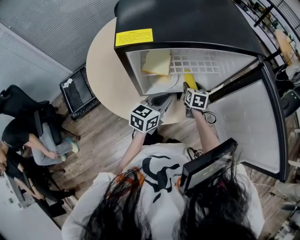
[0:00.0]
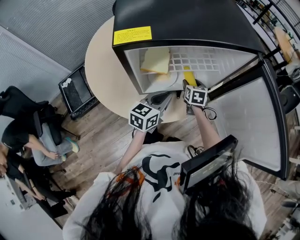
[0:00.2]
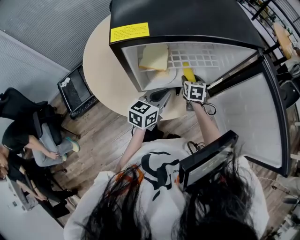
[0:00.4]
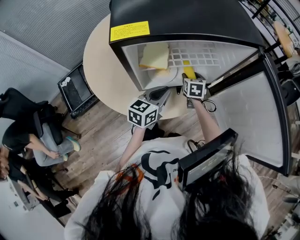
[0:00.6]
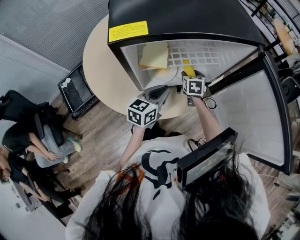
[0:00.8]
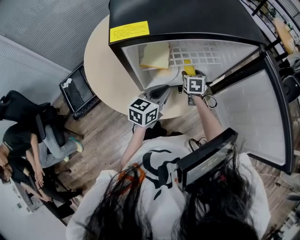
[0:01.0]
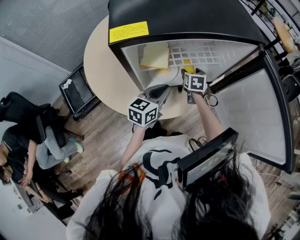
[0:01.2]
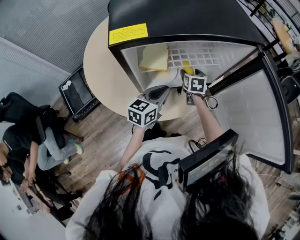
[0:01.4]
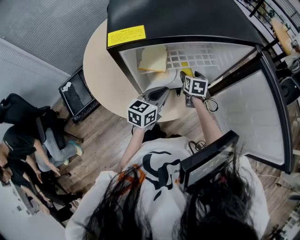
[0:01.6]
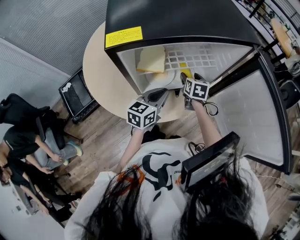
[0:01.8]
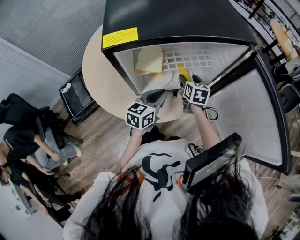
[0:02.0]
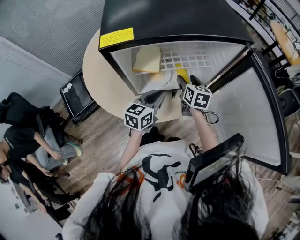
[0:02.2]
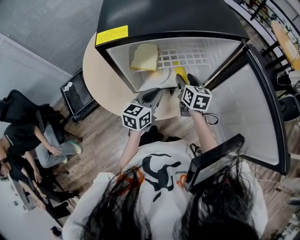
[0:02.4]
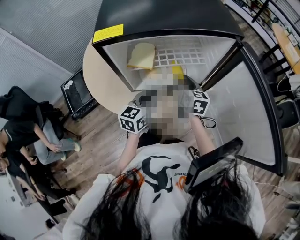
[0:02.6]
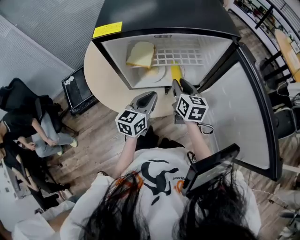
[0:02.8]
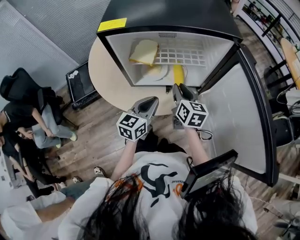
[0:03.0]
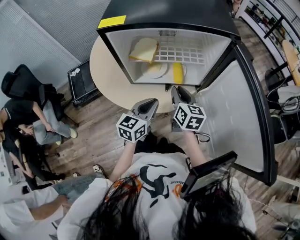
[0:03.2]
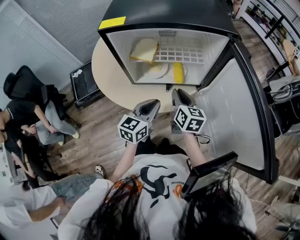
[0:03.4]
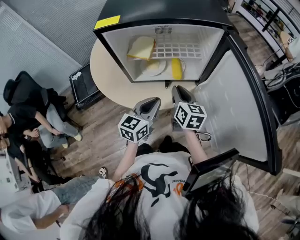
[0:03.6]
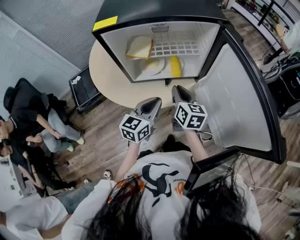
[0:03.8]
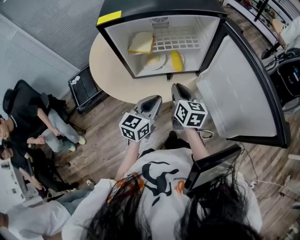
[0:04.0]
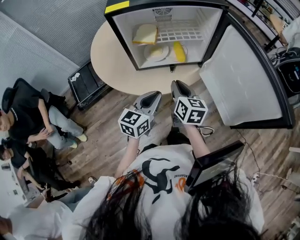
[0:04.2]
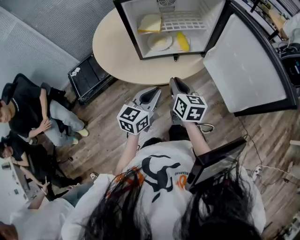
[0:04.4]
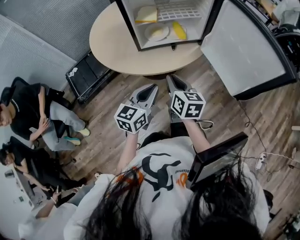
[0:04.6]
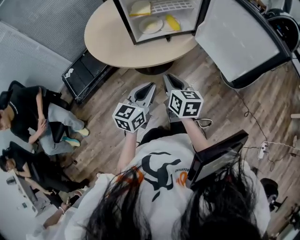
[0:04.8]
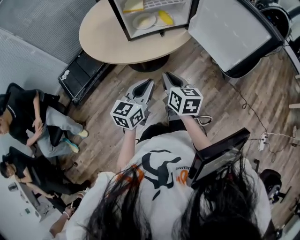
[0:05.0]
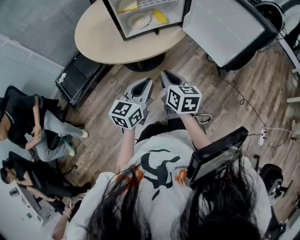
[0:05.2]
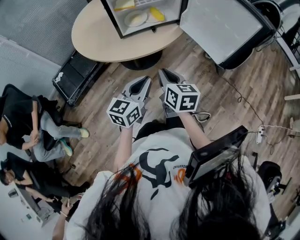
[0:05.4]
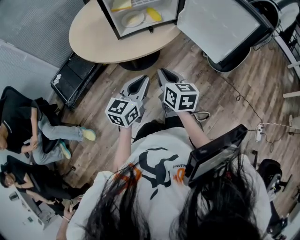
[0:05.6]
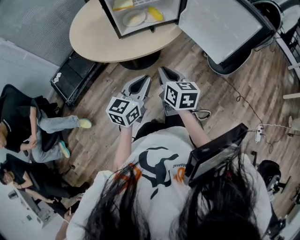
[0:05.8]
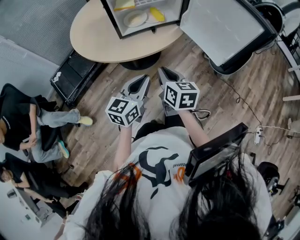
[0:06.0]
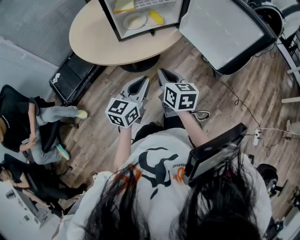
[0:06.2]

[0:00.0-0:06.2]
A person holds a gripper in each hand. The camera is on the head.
0:00.0 to 0:01.6: There are only small adjustments of the grippers.
0:01.6 to 0:03.2: The left gripper shifts about 10 cm backward and to the right; the right gripper goes about 15 cm backward and upward, changes its angle by approximately 30 degrees, and closes.
0:03.2 to 0:04.6: Both grippers travel together backward, roughly 20 cm.
0:04.6 to 0:06.2: The right gripper is displaced backward by about 5 cm. Meanwhile the left gripper changes place by roughly 5 cm.

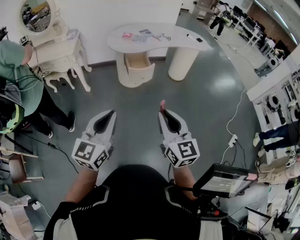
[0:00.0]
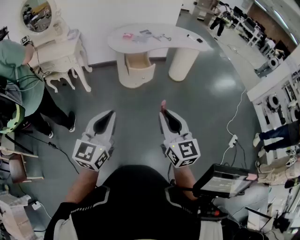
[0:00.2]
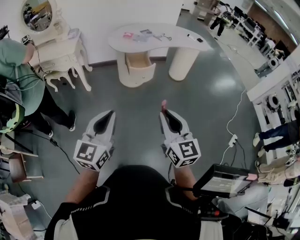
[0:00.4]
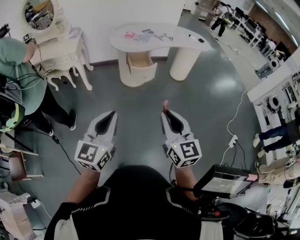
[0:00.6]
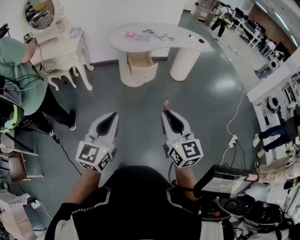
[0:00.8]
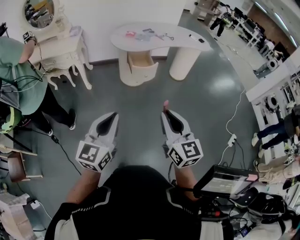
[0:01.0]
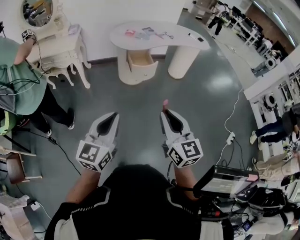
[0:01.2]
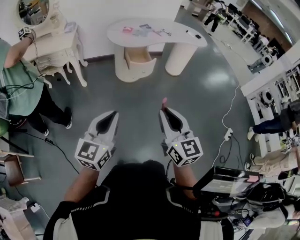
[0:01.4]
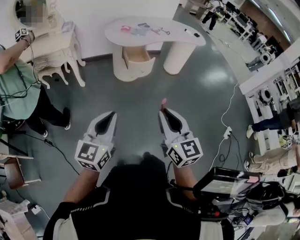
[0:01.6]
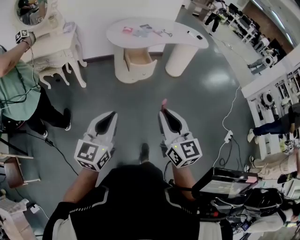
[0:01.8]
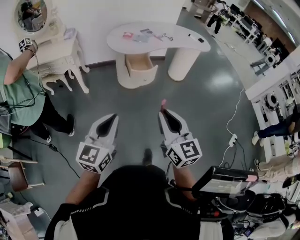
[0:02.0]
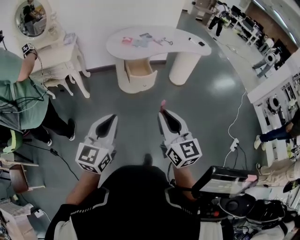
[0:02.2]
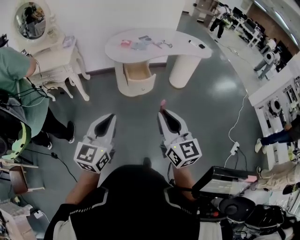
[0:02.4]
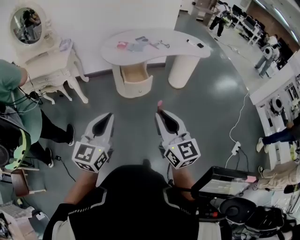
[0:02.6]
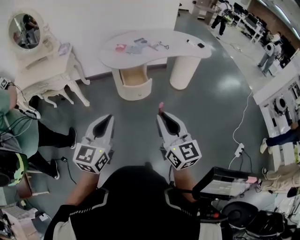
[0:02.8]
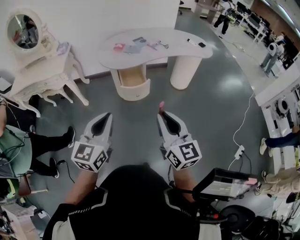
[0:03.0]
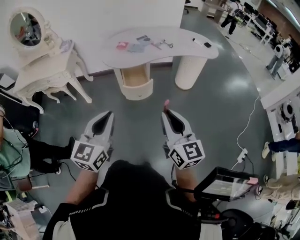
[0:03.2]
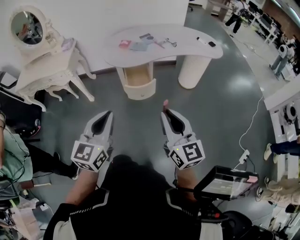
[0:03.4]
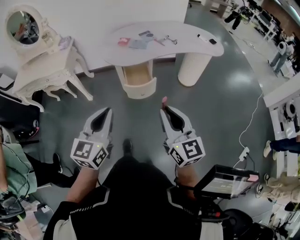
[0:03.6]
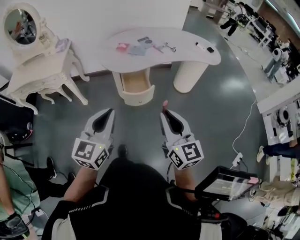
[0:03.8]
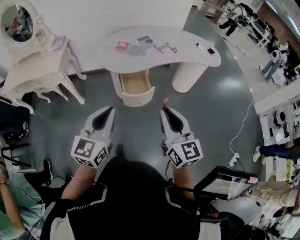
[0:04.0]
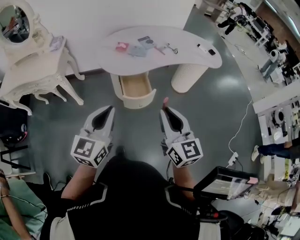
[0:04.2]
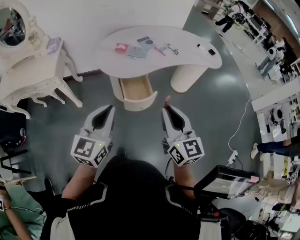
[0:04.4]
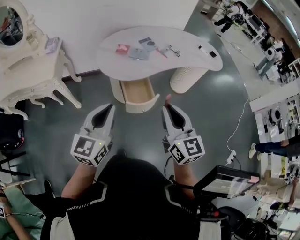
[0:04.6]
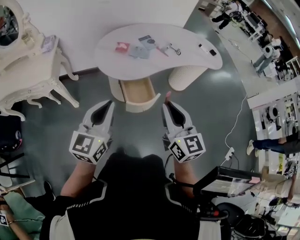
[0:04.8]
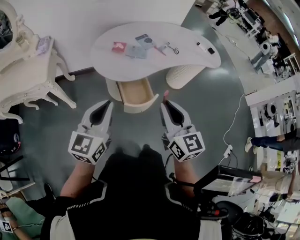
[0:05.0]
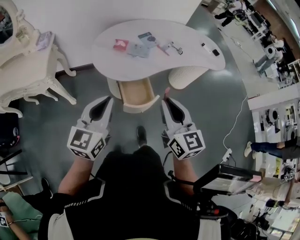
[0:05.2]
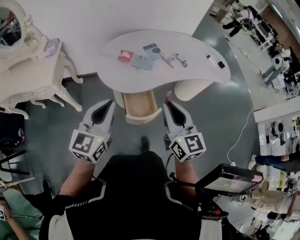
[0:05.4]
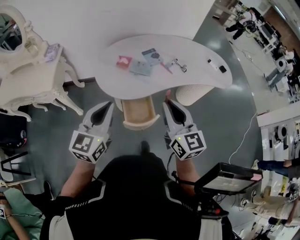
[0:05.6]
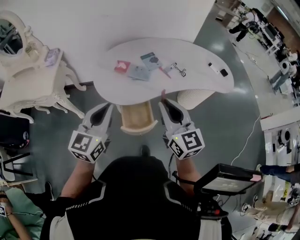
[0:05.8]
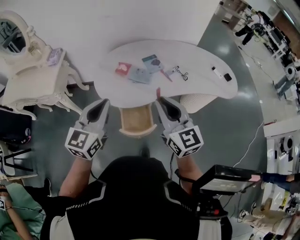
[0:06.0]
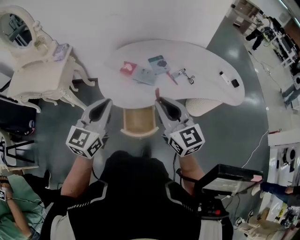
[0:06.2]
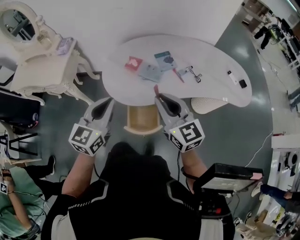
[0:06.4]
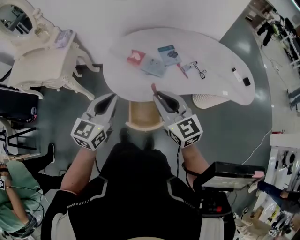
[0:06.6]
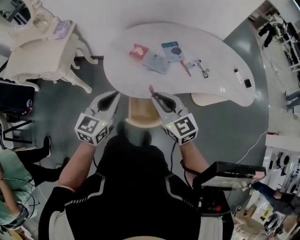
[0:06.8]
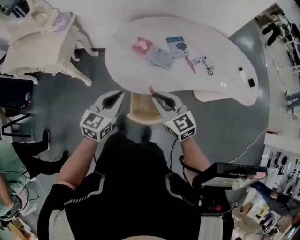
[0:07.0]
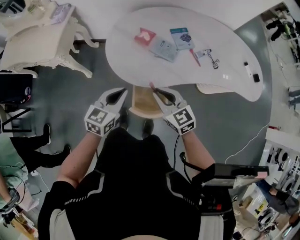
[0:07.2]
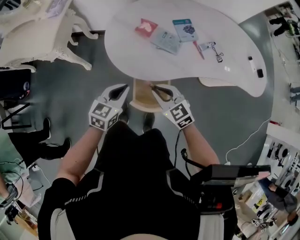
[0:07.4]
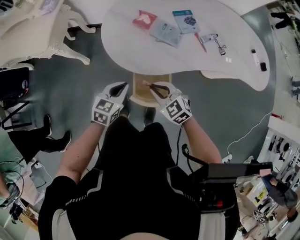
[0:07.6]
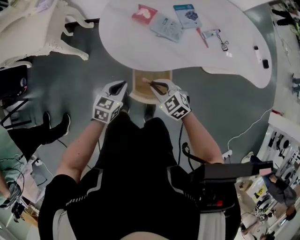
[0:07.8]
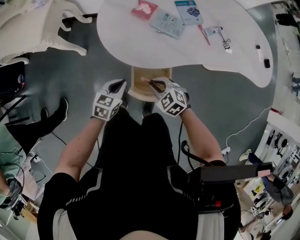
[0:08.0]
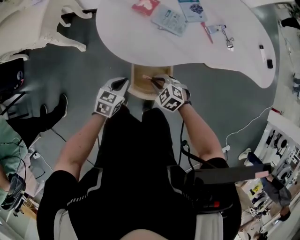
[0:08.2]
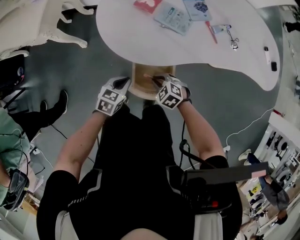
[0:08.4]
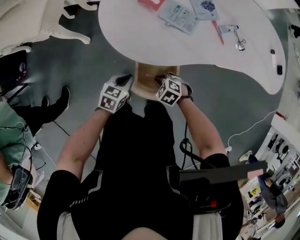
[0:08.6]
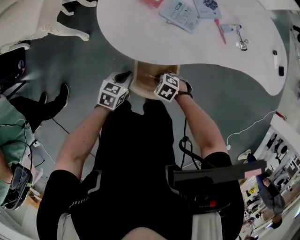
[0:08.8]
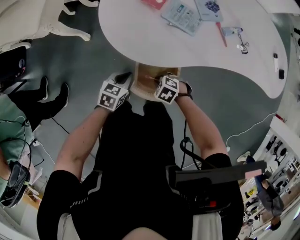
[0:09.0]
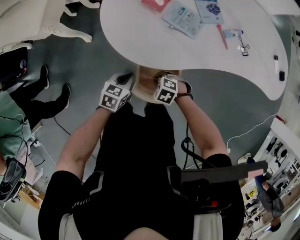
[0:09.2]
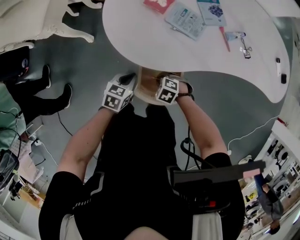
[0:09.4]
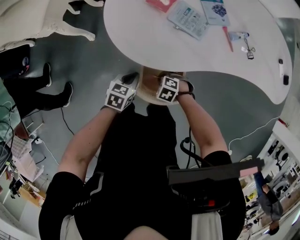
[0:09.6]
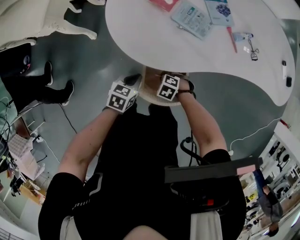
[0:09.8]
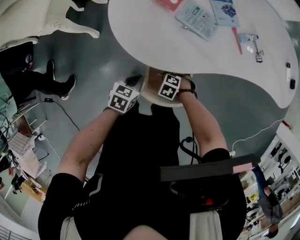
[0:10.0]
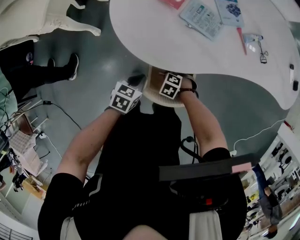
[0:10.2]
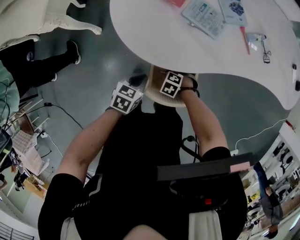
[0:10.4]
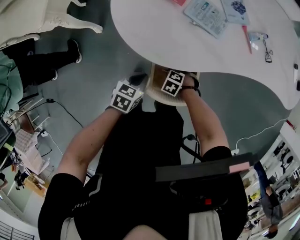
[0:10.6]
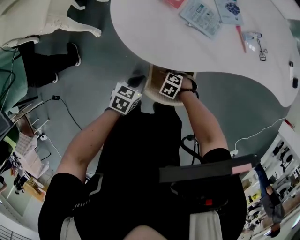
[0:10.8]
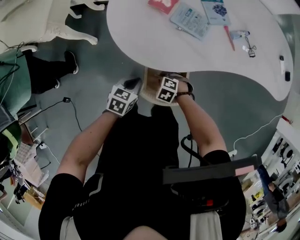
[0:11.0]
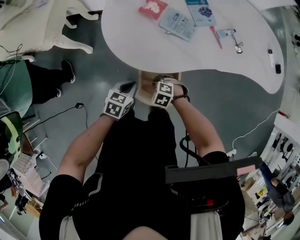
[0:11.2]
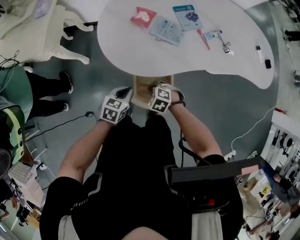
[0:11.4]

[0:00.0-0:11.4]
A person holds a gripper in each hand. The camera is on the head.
0:00.0 to 0:01.4: Both grippers travel together to the left, roughly 5 cm.
0:01.4 to 0:02.8: Both grippers travel together forward and to the right, approximately 20 cm.
0:02.8 to 0:04.2: The two grippers go some 20 cm forward.
0:04.2 to 0:05.6: The grippers both shift forward by about 20 cm.
0:05.6 to 0:07.2: Both grippers move downward and forward, approximately 20 cm. The right gripper swivels roughly 40 degrees; the left gripper swivels about 20 degrees.
0:07.2 to 0:08.6: Both grippers move downward, about 25 cm. The right gripper angles its fingers downward, by some 40 degrees; the left gripper turns by some 30 degrees.
0:08.6 to 0:10.0: The right gripper travels downward by roughly 10 cm.
0:10.0 to 0:11.4: The right gripper is displaced upward by approximately 10 cm, while the left gripper shifts roughly 5 cm upward.

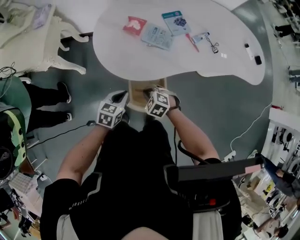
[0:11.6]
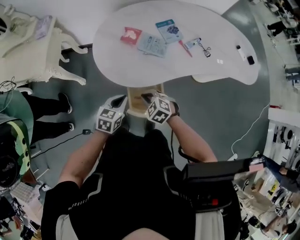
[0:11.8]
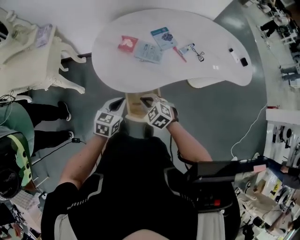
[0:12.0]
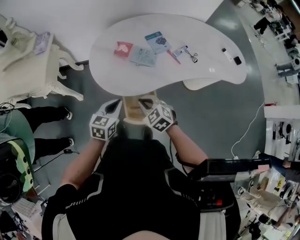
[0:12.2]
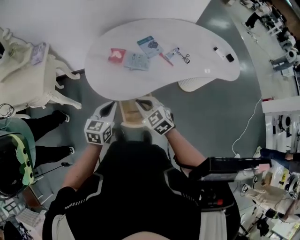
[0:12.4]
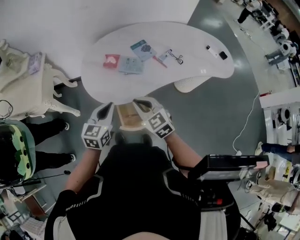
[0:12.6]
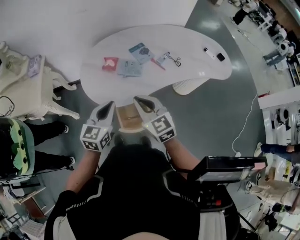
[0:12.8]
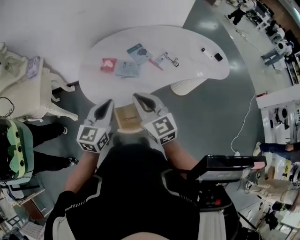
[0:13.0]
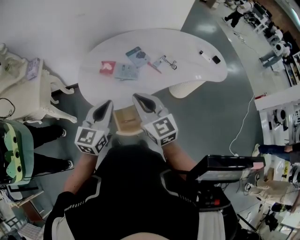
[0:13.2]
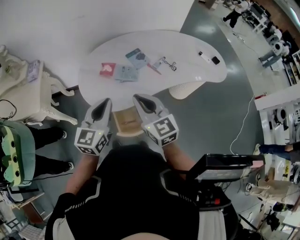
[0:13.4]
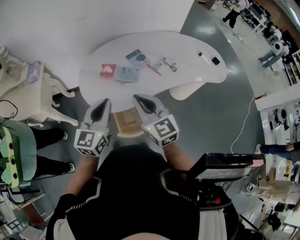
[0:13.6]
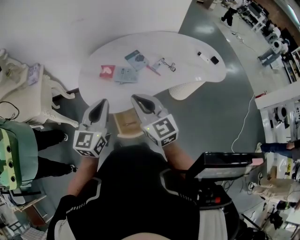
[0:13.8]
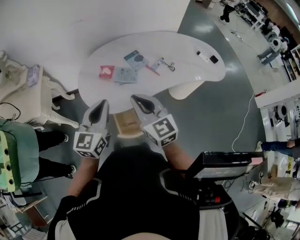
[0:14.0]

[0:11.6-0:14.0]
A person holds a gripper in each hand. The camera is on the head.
0:11.6 to 0:12.8: The grippers both shift upward by approximately 25 cm. The left gripper changes its angle by roughly 30 degrees. Meanwhile the right gripper tips its fingers upward by some 40 degrees.
0:12.8 to 0:14.0: Both grippers travel together upward, about 10 cm.

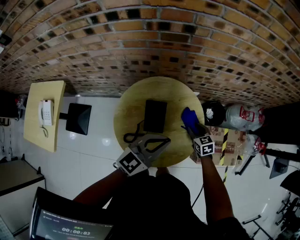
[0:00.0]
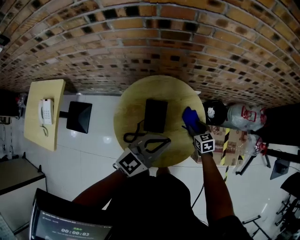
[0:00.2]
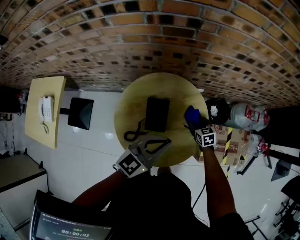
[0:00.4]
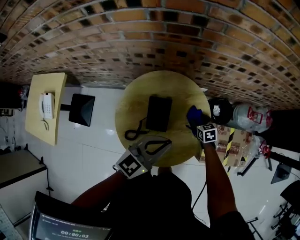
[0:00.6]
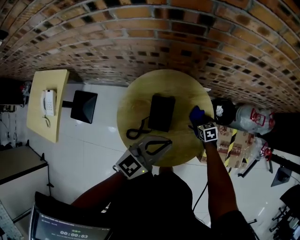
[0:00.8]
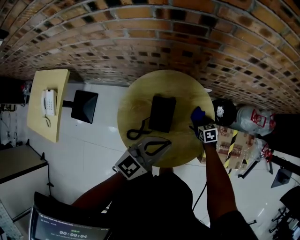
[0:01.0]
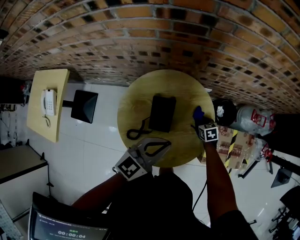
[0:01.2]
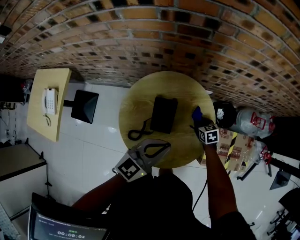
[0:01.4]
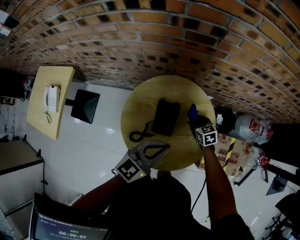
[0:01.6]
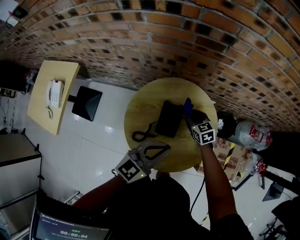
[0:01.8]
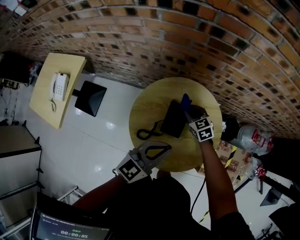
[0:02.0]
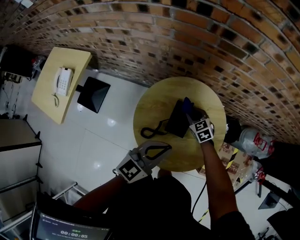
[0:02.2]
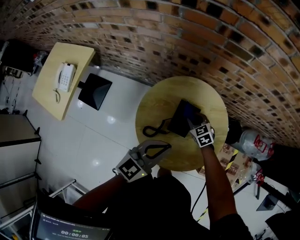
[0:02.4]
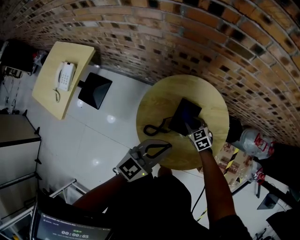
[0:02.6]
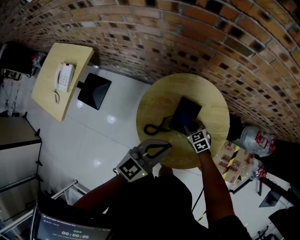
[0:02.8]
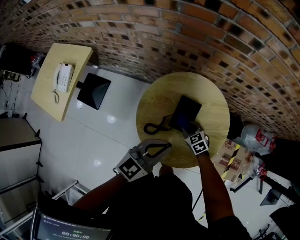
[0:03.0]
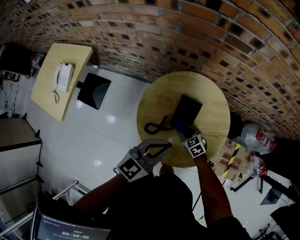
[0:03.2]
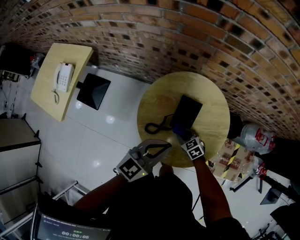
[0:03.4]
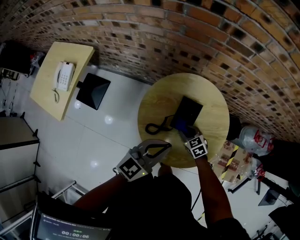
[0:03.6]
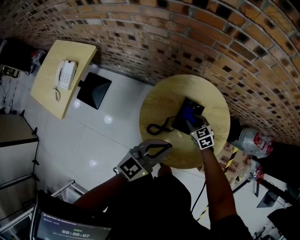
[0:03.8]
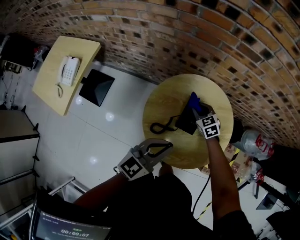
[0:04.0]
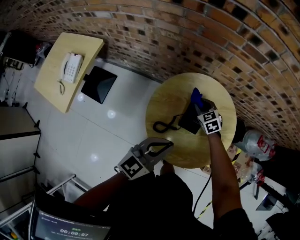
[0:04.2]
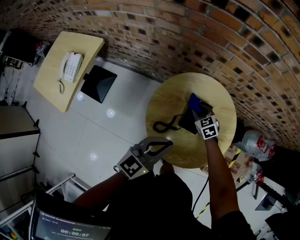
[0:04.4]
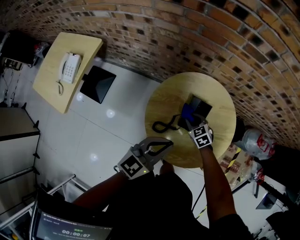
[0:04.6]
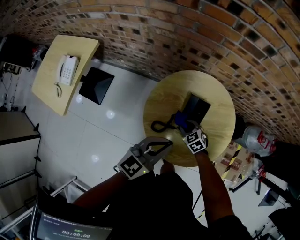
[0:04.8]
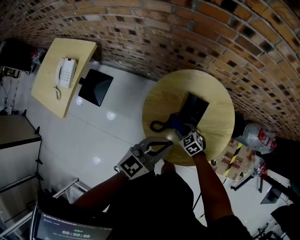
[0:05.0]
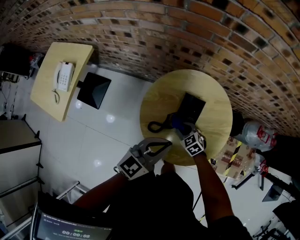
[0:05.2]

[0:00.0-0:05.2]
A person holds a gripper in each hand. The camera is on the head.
0:00.0 to 0:01.8: The right gripper moves to the left and forward, approximately 15 cm, and opens, then closes again. Meanwhile the left gripper shifts some 5 cm to the left.
0:01.8 to 0:03.4: The right gripper travels backward, to the left and downward by roughly 20 cm, and swivels approximately 20 degrees. The left gripper goes about 10 cm to the left.
0:03.4 to 0:05.2: The right gripper reaches approximately 15 cm forward, then returns.
